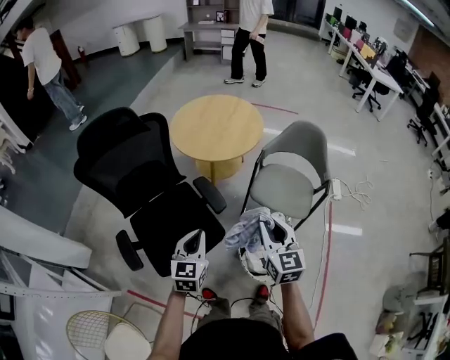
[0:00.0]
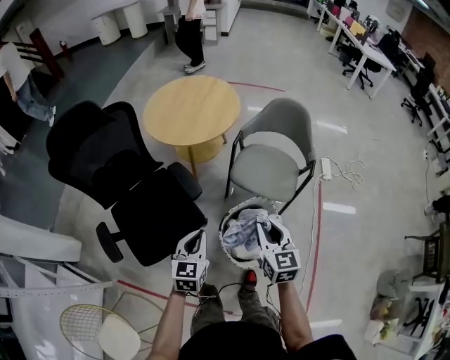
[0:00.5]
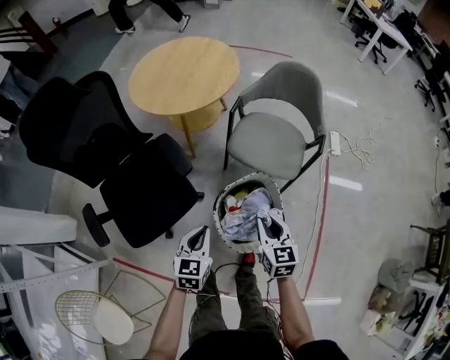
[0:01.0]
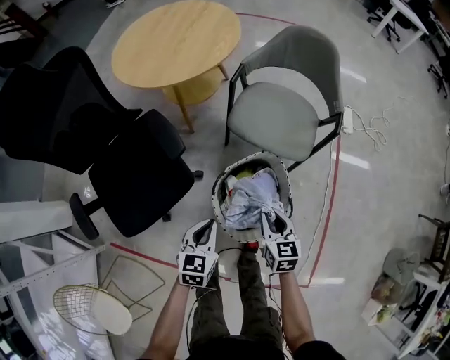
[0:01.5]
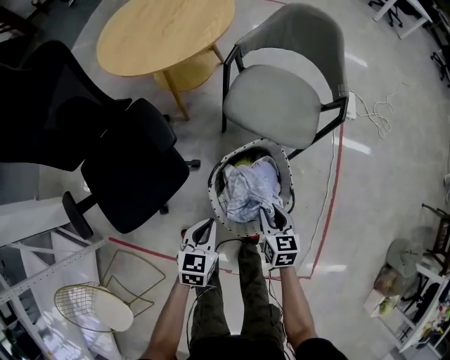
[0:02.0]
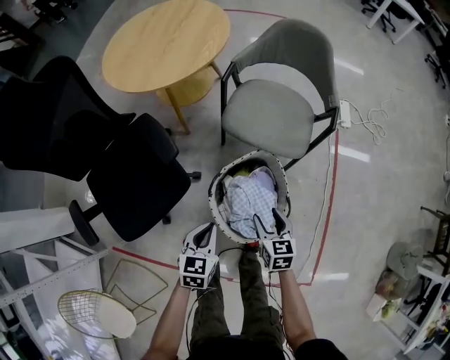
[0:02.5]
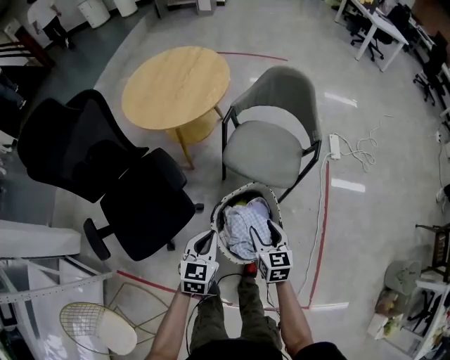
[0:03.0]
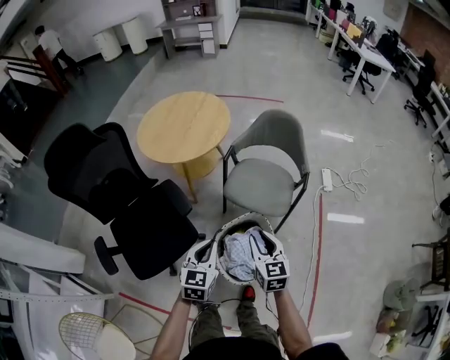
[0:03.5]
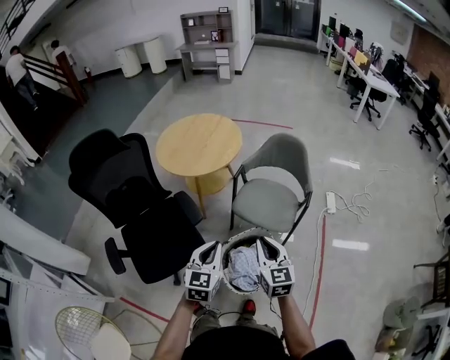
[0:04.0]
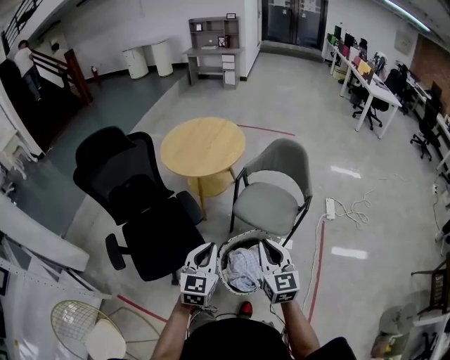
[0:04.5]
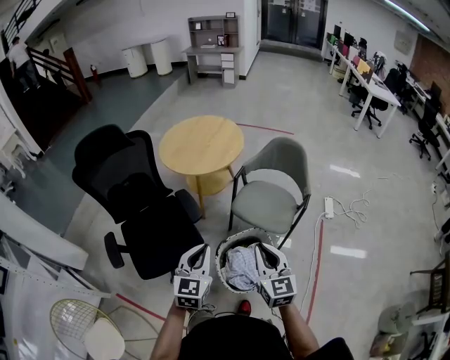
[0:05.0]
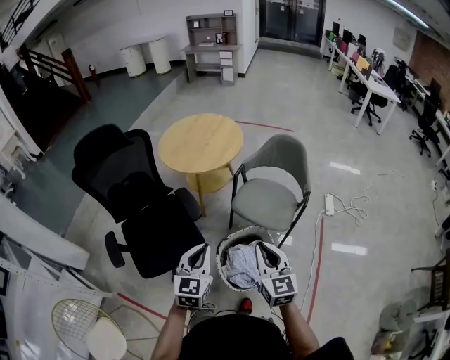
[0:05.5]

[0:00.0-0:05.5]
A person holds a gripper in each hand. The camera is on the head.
0:00.0 to 0:02.0: Both grippers move downward and to the right, roughly 40 cm. The right gripper changes its angle by about 30 degrees. Meanwhile the left gripper changes its angle by roughly 30 degrees.
0:02.0 to 0:03.5: Both grippers move upward, approximately 25 cm. The right gripper swivels some 20 degrees.
0:03.5 to 0:05.5: Both grippers move upward and backward, roughly 15 cm.

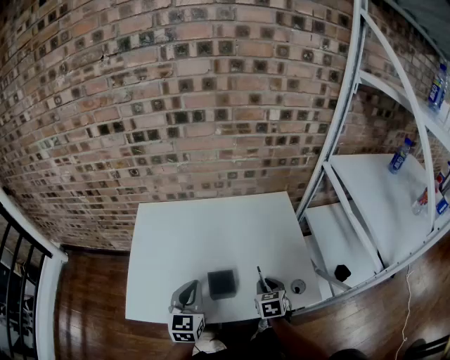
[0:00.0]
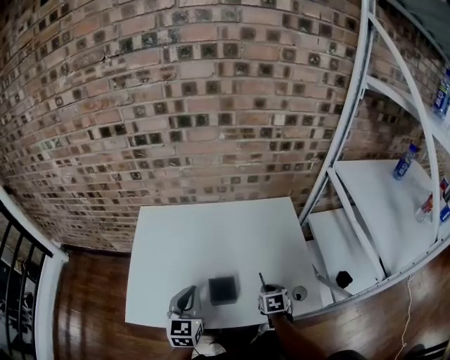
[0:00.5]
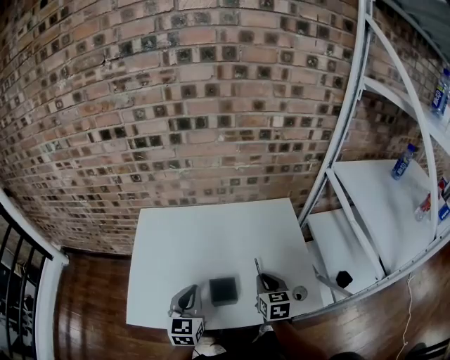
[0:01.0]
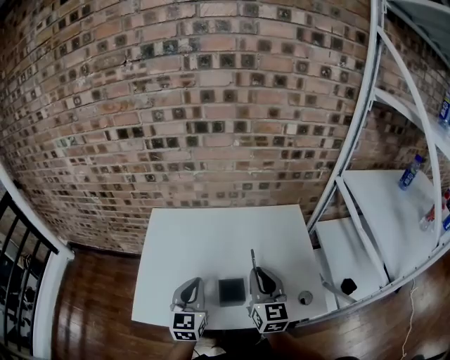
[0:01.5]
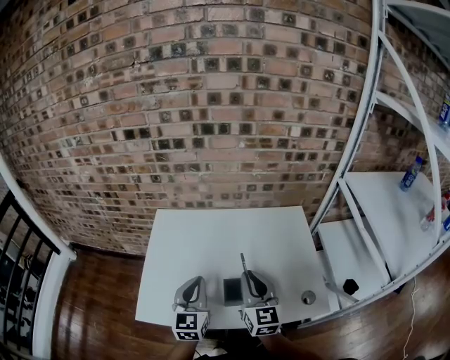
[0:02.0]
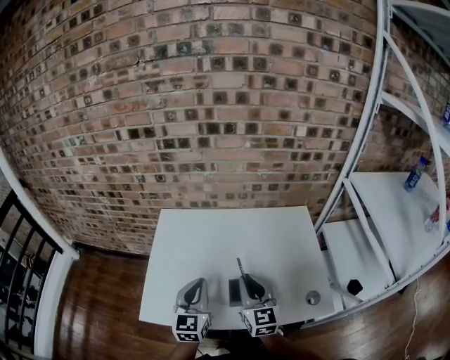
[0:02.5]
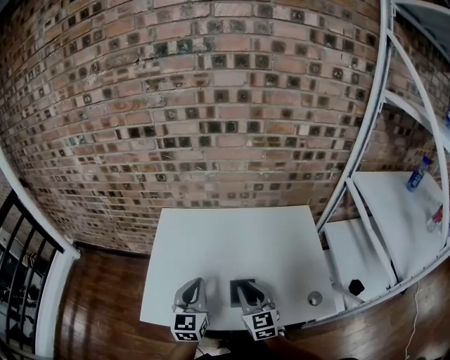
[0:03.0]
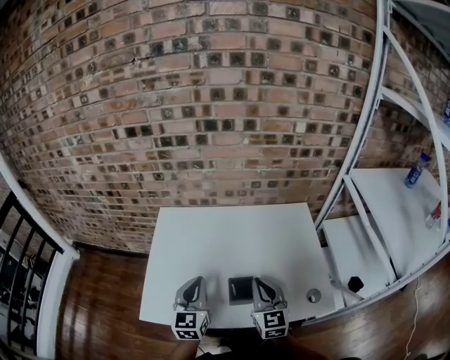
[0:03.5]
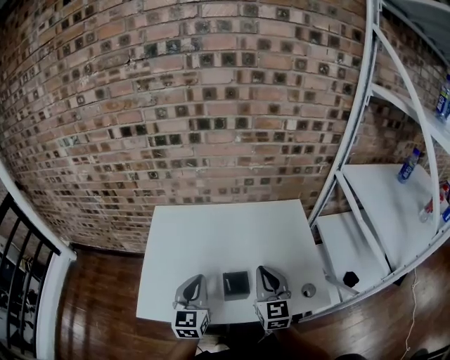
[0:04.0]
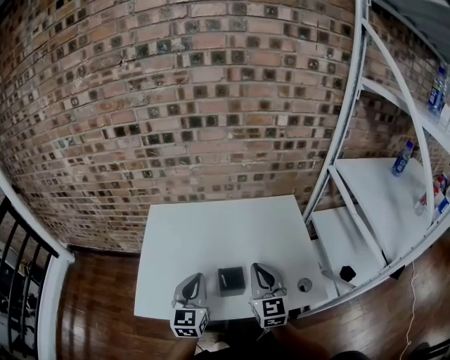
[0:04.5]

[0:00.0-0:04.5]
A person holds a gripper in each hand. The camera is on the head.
0:00.0 to 0:02.0: The right gripper travels upward and to the left by approximately 20 cm, and points its fingers about 40 degrees further upward, while the left gripper shifts by roughly 5 cm.
0:02.0 to 0:04.5: The right gripper goes downward and returns, about 10 cm each way.

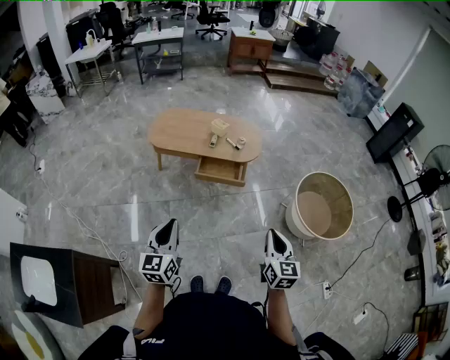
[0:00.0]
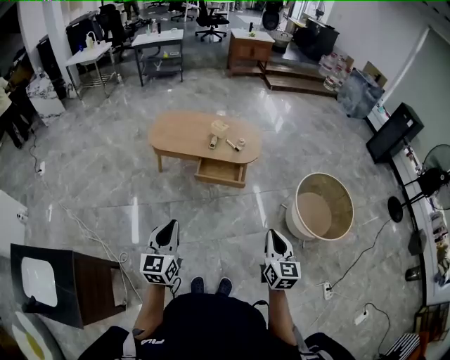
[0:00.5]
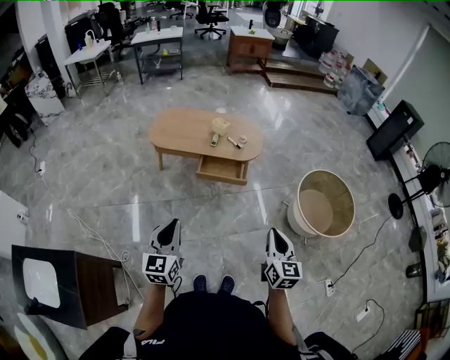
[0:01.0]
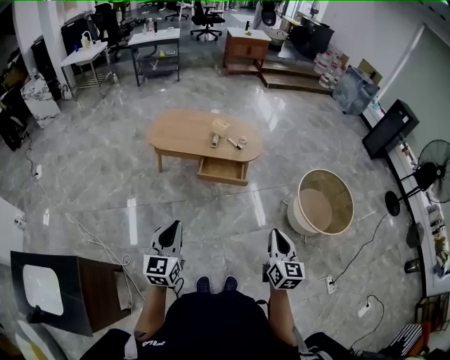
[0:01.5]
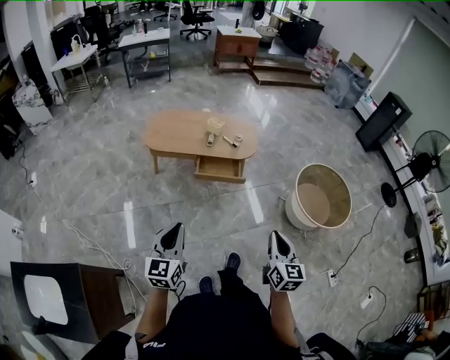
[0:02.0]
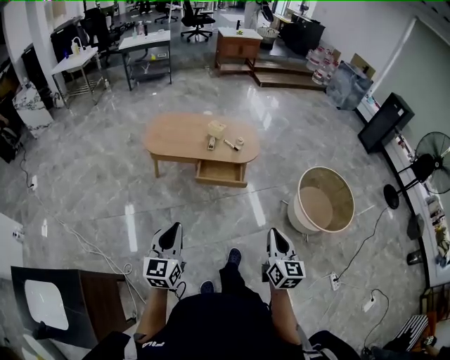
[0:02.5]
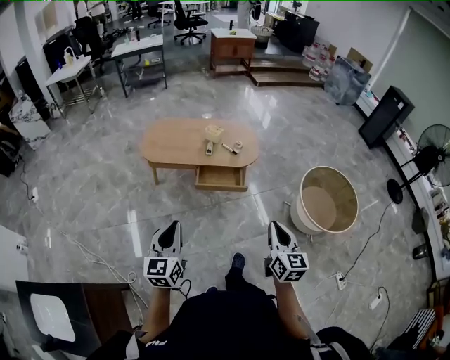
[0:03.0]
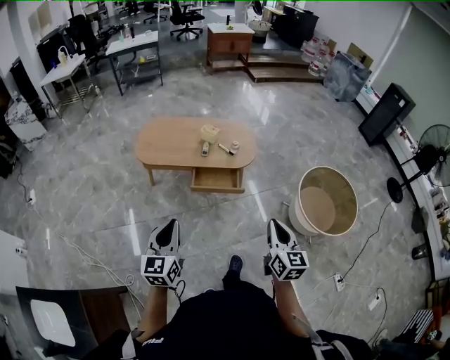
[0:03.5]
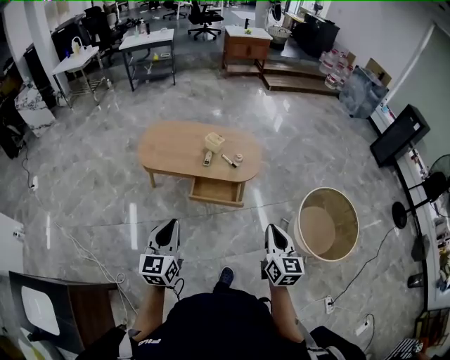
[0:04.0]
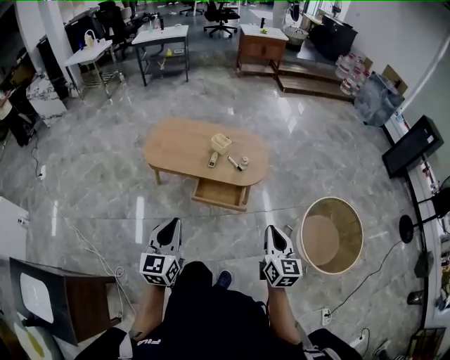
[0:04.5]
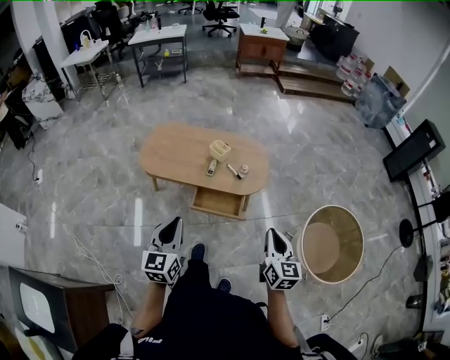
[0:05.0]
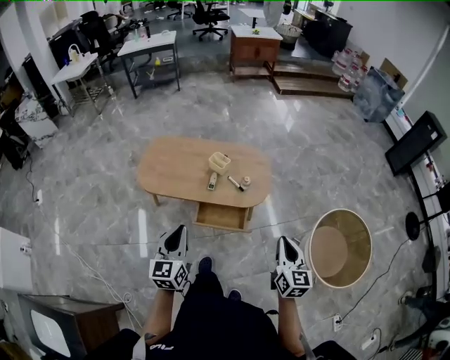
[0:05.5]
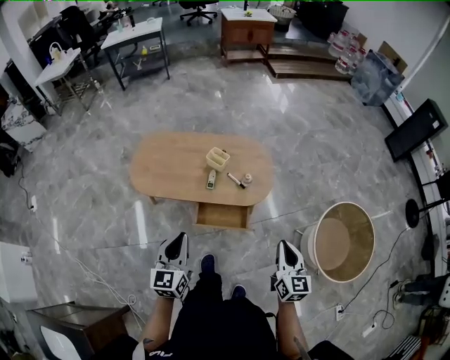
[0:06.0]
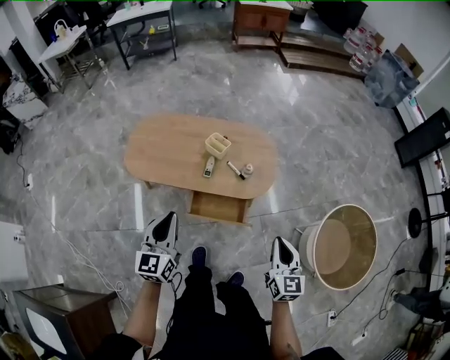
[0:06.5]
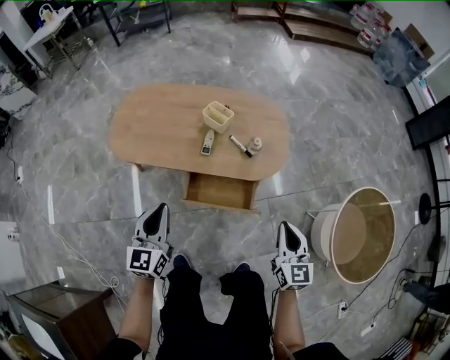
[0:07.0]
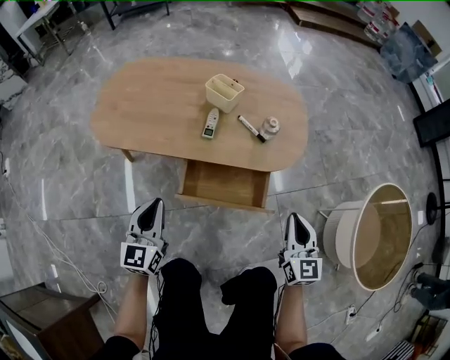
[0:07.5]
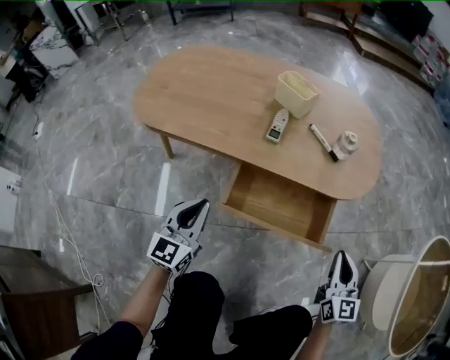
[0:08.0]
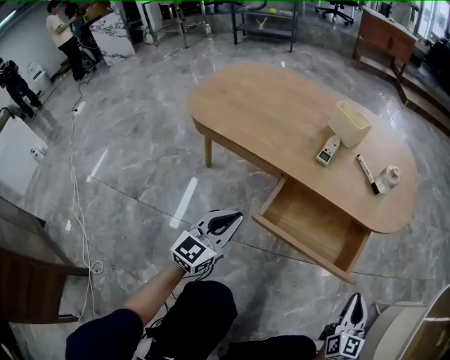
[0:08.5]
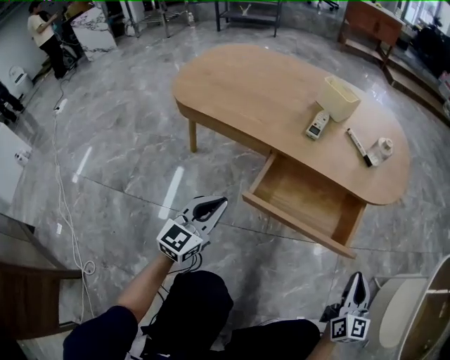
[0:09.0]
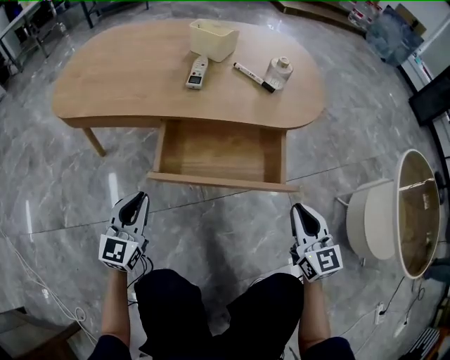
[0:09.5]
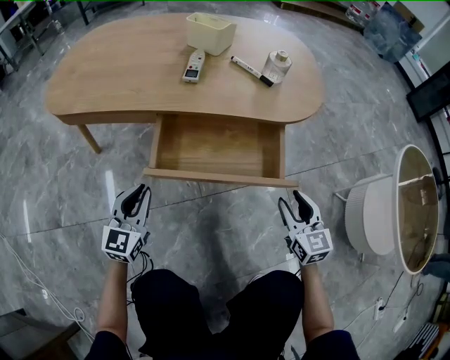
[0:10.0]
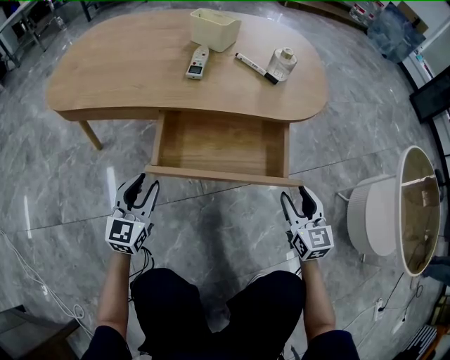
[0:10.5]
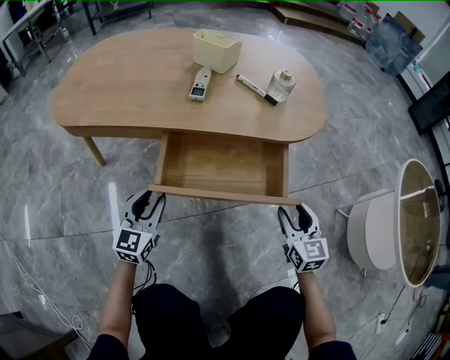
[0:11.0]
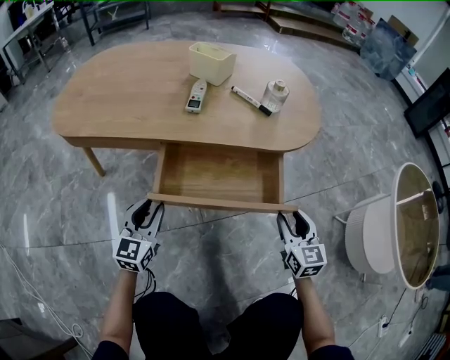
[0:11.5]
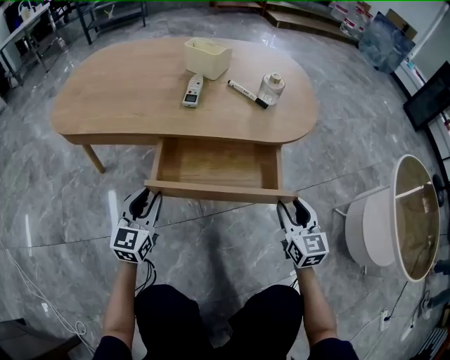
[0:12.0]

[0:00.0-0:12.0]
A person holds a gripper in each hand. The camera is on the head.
0:00.0 to 0:02.0: The right gripper is displaced to the left by approximately 5 cm.
0:02.0 to 0:04.0: Both grippers travel together forward, approximately 25 cm.
0:04.0 to 0:06.0: The two grippers go about 25 cm forward.
0:06.0 to 0:08.0: Both grippers travel together downward, about 50 cm.
0:08.0 to 0:10.0: The grippers both shift downward by roughly 15 cm. The right gripper opens.
0:10.0 to 0:12.0: The left gripper opens up.

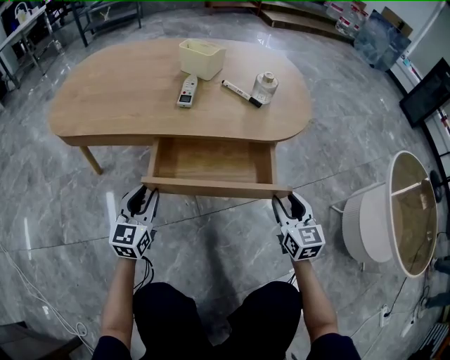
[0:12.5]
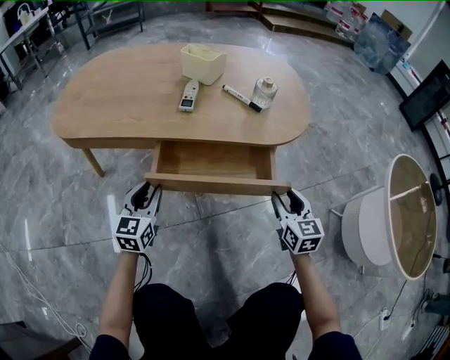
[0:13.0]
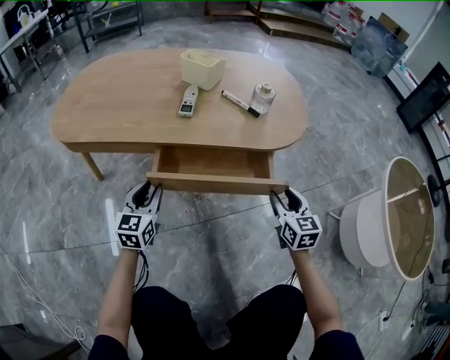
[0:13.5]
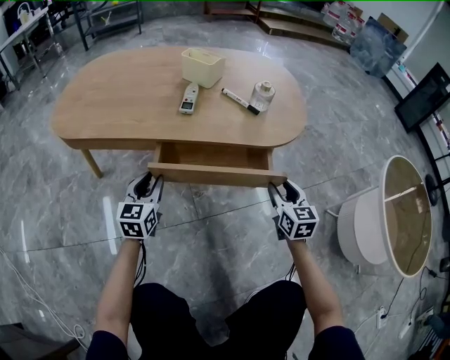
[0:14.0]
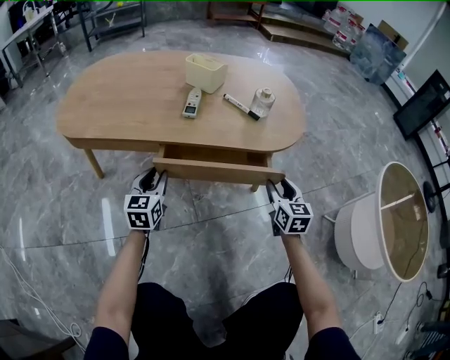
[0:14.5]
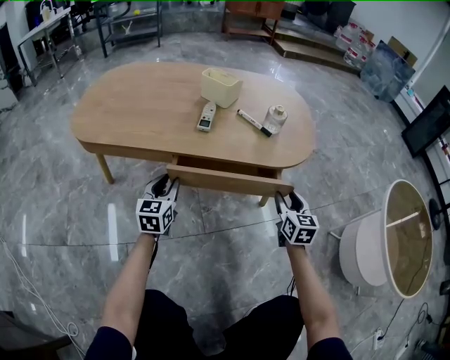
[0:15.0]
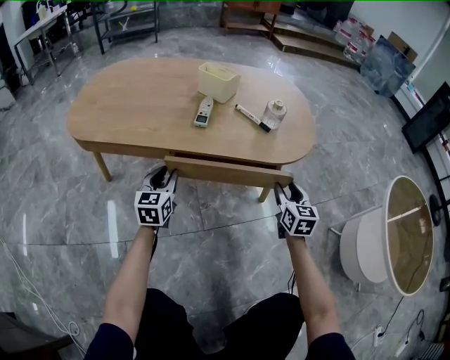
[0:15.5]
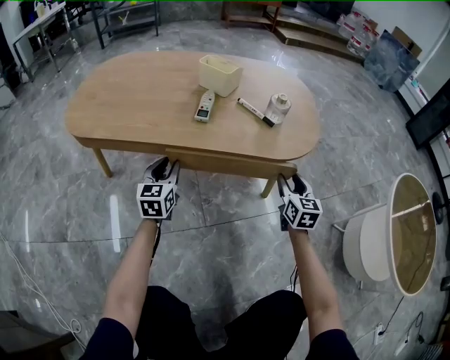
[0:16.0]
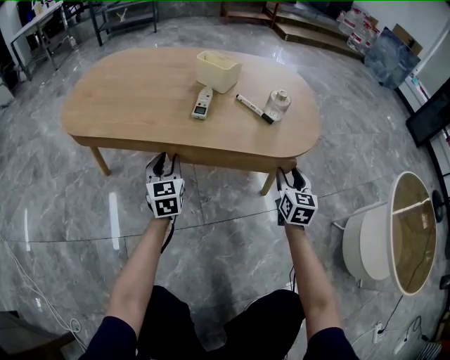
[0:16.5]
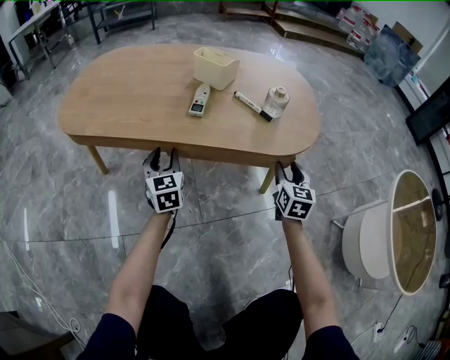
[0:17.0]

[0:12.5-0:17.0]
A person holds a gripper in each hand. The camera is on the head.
0:12.5 to 0:14.5: The grippers both shift forward by some 5 cm.
0:14.5 to 0:17.0: The two grippers go approximately 5 cm forward.
